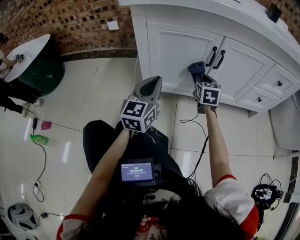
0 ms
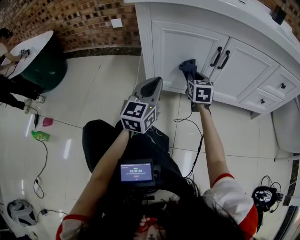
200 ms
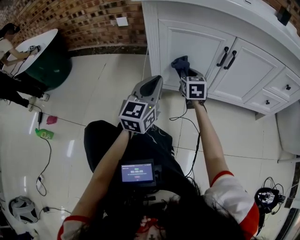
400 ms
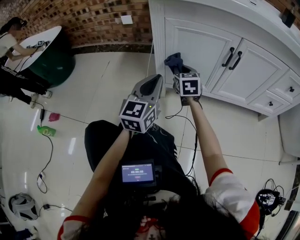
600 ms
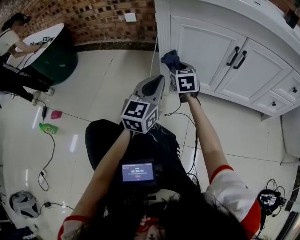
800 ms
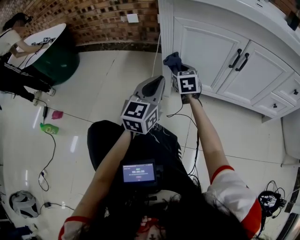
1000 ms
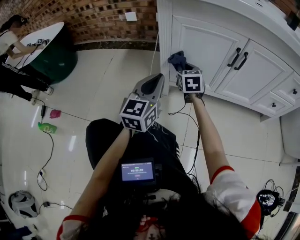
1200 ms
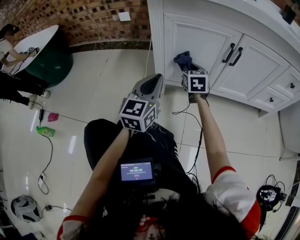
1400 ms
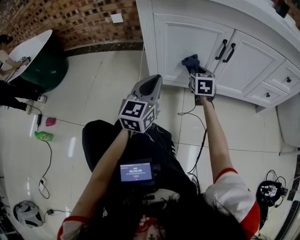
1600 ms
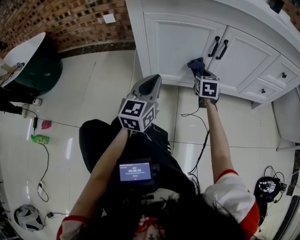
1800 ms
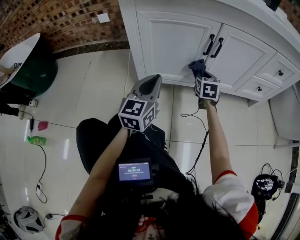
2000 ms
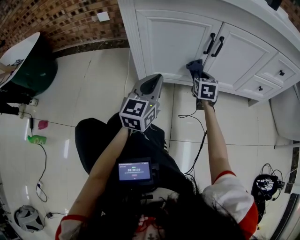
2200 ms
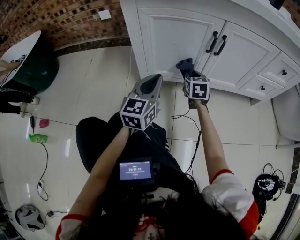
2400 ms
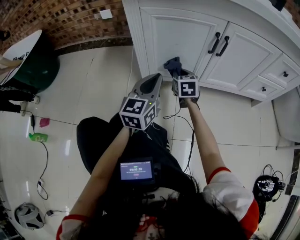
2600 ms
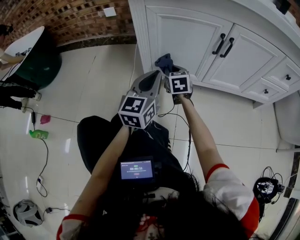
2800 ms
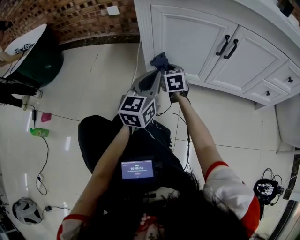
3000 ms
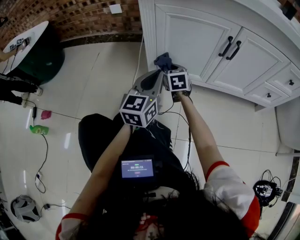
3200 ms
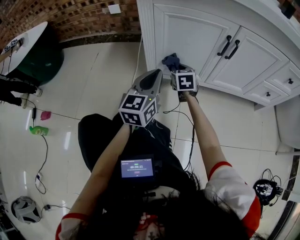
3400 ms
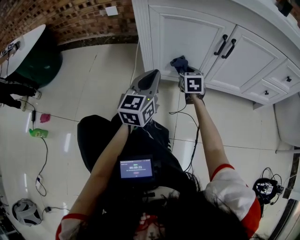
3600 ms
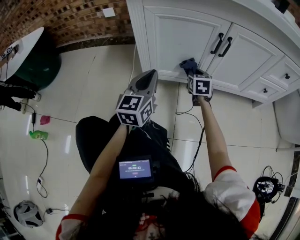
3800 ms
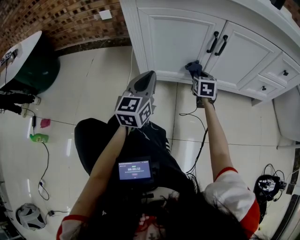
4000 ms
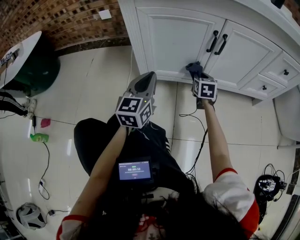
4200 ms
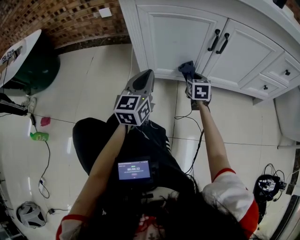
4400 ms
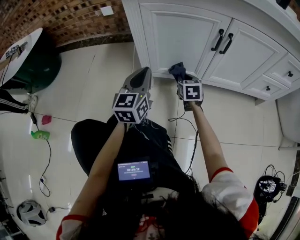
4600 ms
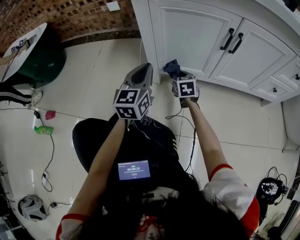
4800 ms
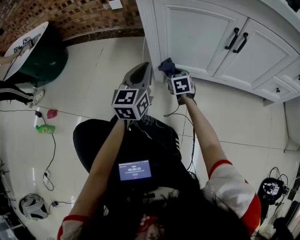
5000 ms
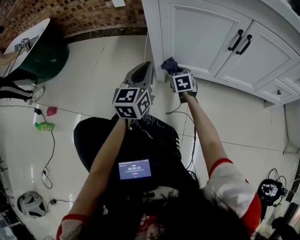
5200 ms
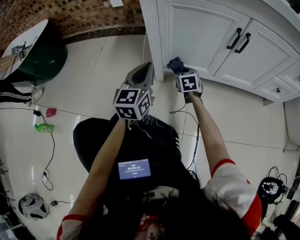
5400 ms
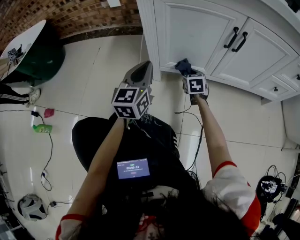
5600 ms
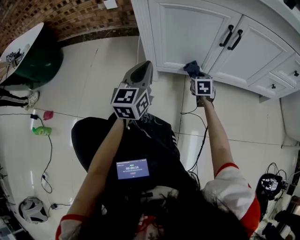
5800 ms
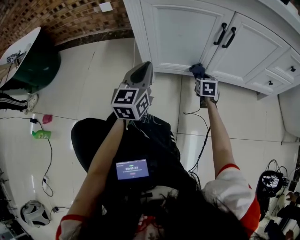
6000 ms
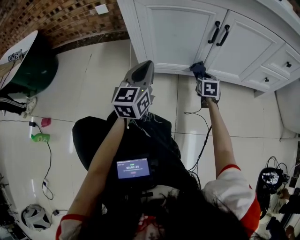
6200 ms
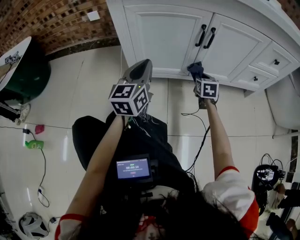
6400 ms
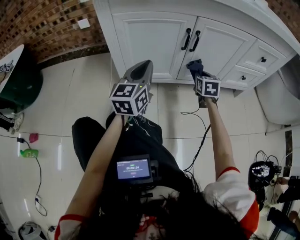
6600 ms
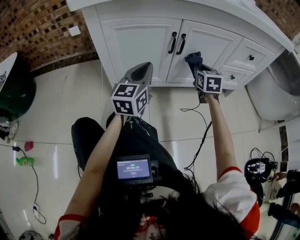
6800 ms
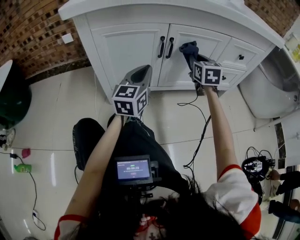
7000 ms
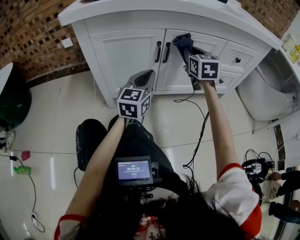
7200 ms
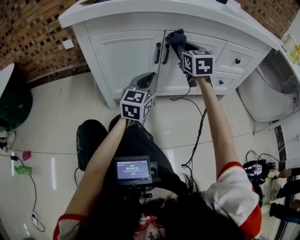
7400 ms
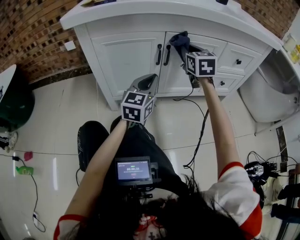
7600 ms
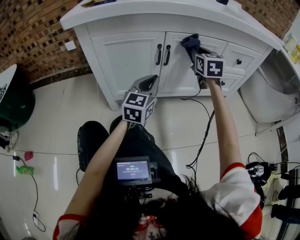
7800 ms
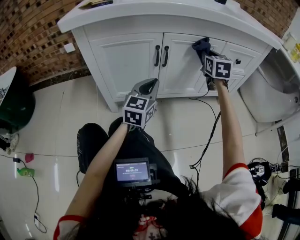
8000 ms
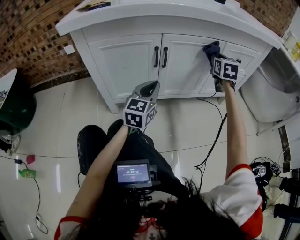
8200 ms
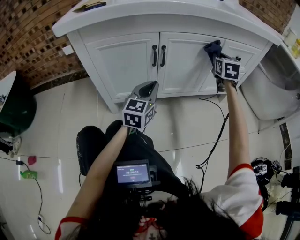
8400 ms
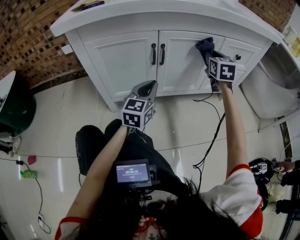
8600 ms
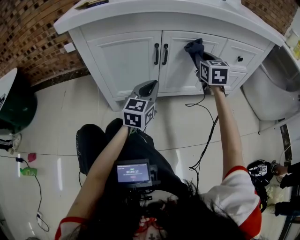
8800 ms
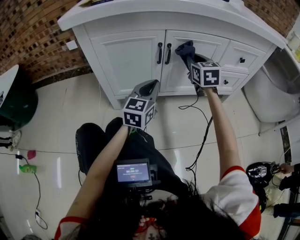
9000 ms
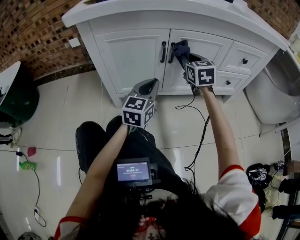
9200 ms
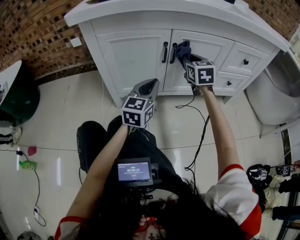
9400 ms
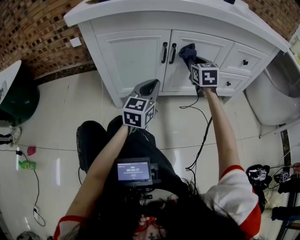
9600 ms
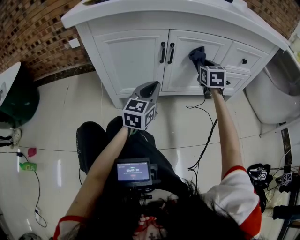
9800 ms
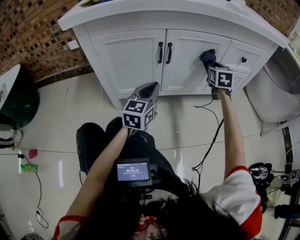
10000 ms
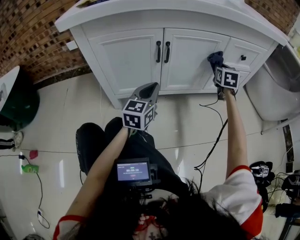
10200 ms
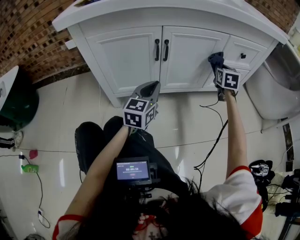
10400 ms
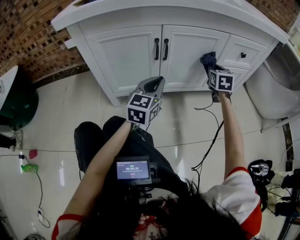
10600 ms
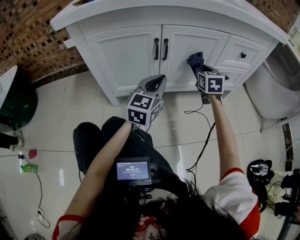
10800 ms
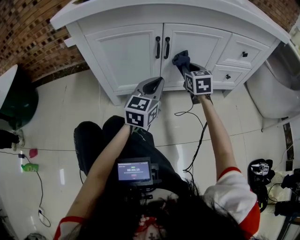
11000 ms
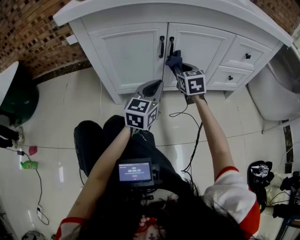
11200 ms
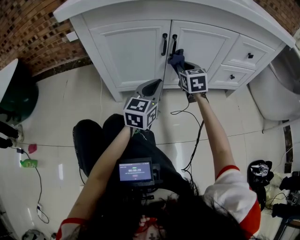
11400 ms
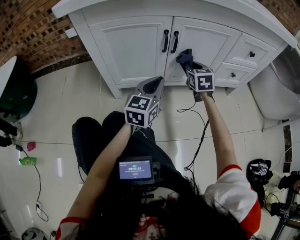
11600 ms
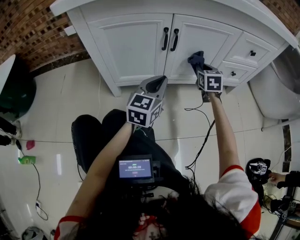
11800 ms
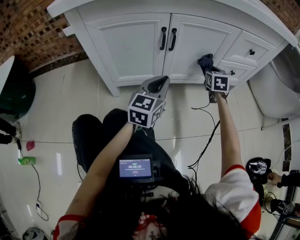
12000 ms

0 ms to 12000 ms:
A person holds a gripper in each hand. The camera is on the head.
0 ms to 1600 ms: The right gripper moves some 25 cm to the left and comes back.
1600 ms to 3000 ms: The right gripper heads to the left, covering approximately 15 cm.
3000 ms to 4400 ms: The right gripper goes roughly 20 cm to the right.
4400 ms to 6000 ms: The right gripper shifts roughly 5 cm downward, and goes to the left and returns, about 15 cm each way; the left gripper reaches roughly 10 cm to the left, then returns.
6000 ms to 7600 ms: The left gripper moves to the right, about 25 cm. Meanwhile the right gripper travels upward by roughly 35 cm, and changes its angle by roughly 30 degrees.
7600 ms to 9000 ms: The right gripper moves roughly 20 cm to the right and comes back.
9000 ms to 10400 ms: The right gripper shifts some 20 cm to the right and downward, and swivels some 20 degrees.
10400 ms to 12000 ms: The right gripper moves downward, about 10 cm, and moves roughly 25 cm to the left and comes back.

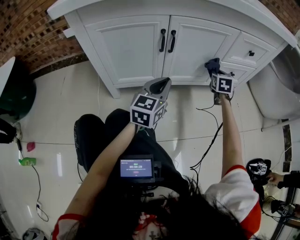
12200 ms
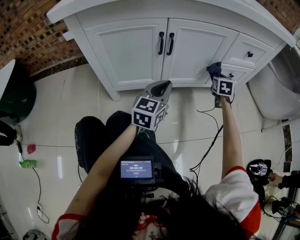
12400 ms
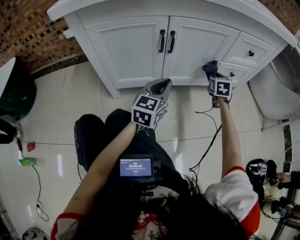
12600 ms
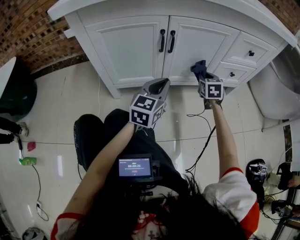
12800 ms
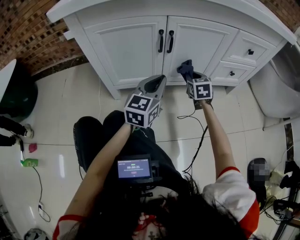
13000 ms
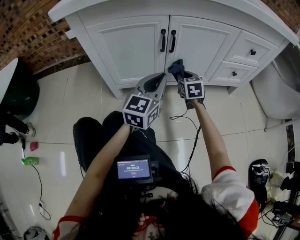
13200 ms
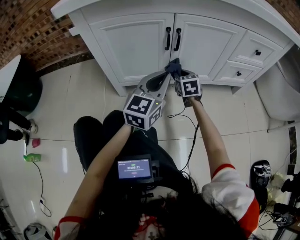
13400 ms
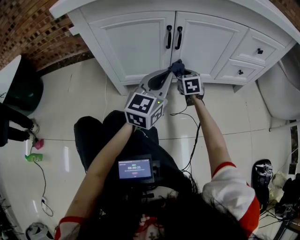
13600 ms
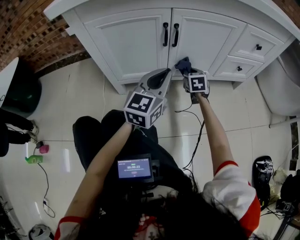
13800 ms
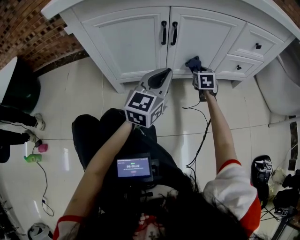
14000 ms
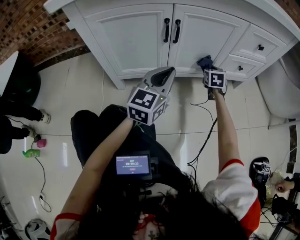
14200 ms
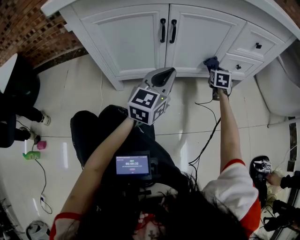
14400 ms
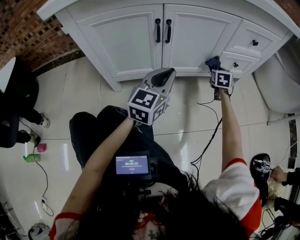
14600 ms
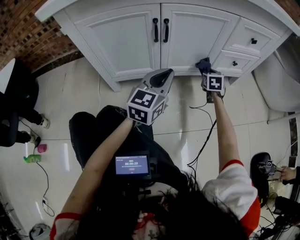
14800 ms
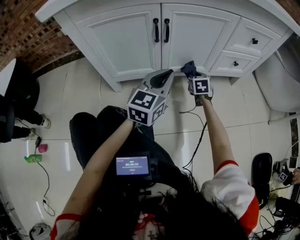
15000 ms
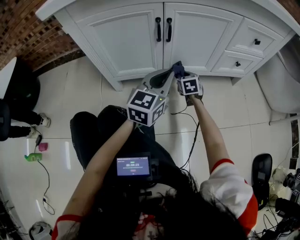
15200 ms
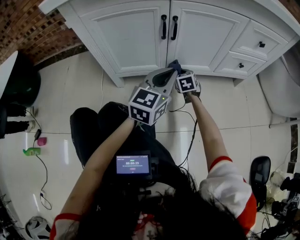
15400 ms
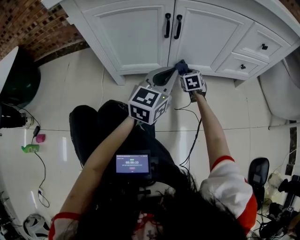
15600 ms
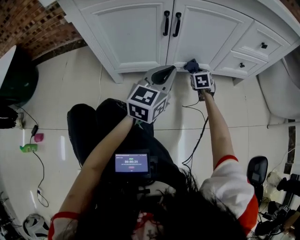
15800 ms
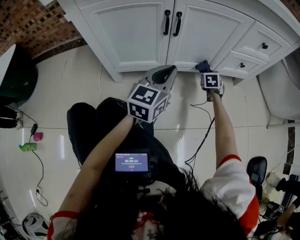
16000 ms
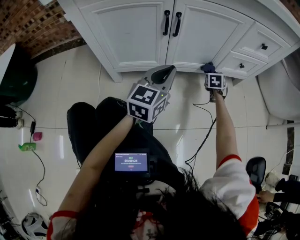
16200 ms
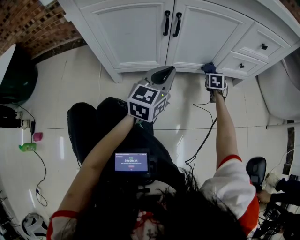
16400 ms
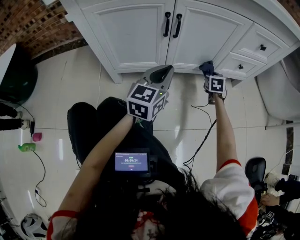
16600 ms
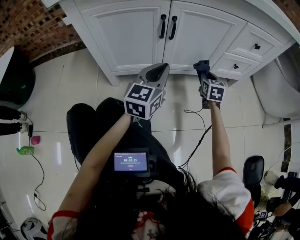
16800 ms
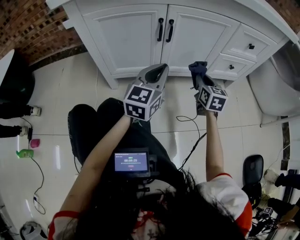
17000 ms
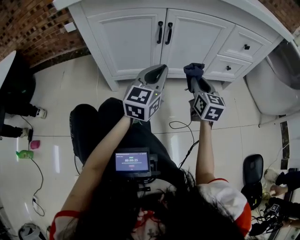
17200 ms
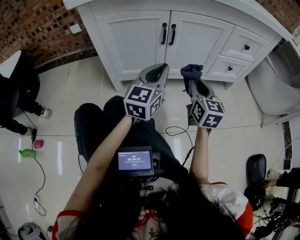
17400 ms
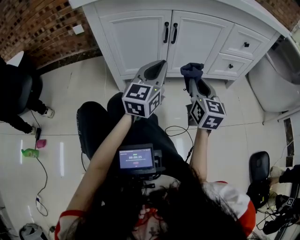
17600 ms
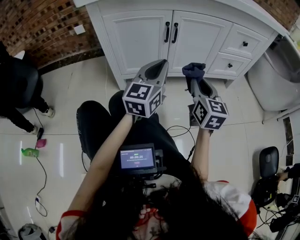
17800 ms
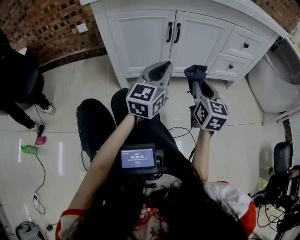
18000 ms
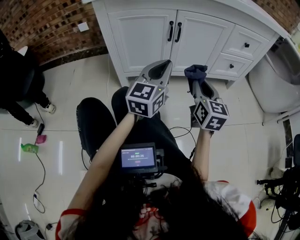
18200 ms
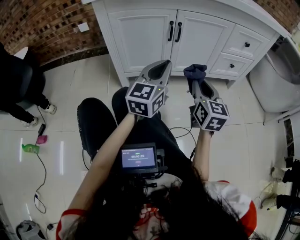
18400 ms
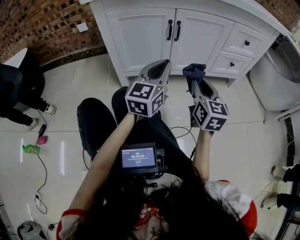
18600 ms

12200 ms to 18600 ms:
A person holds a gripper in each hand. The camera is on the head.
12200 ms to 13800 ms: The right gripper moves to the left, some 15 cm.
13800 ms to 15400 ms: The right gripper shifts roughly 10 cm downward, and travels to the right and back again, roughly 20 cm each way.
15400 ms to 17000 ms: The right gripper travels upward and to the right by some 20 cm, and changes its angle by some 30 degrees.
17000 ms to 18600 ms: The left gripper is displaced backward and upward by roughly 10 cm; the right gripper is displaced backward and upward by about 20 cm.

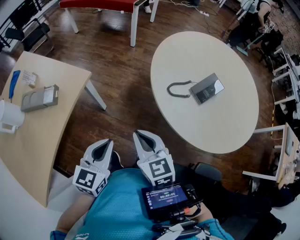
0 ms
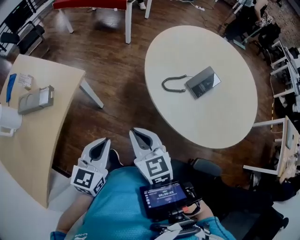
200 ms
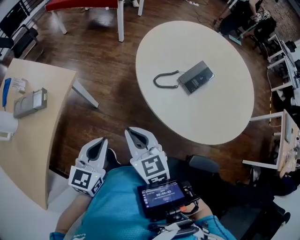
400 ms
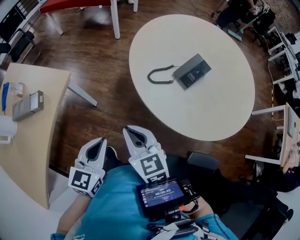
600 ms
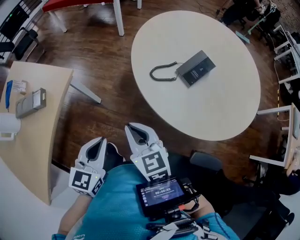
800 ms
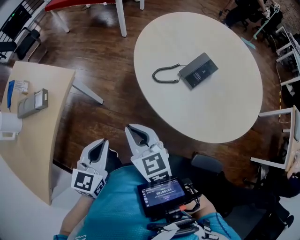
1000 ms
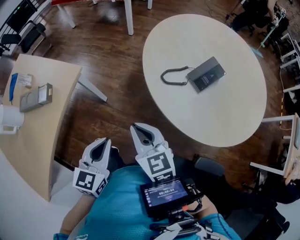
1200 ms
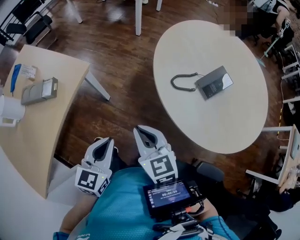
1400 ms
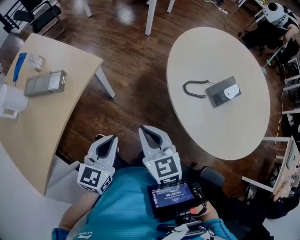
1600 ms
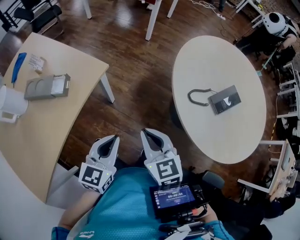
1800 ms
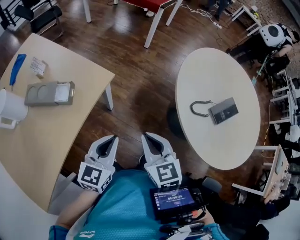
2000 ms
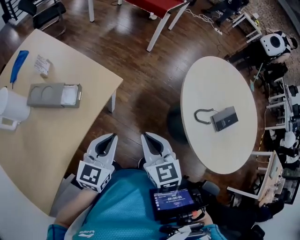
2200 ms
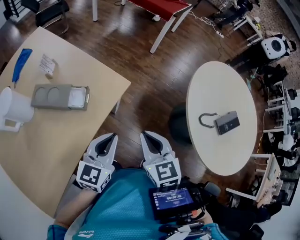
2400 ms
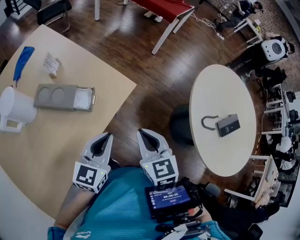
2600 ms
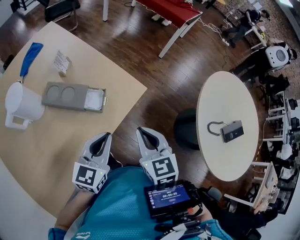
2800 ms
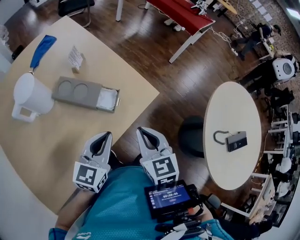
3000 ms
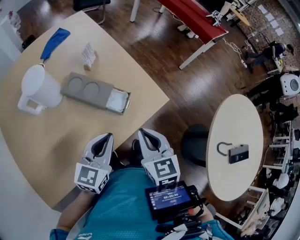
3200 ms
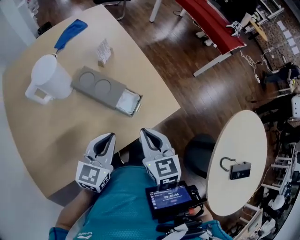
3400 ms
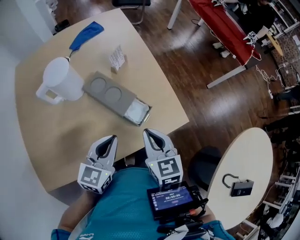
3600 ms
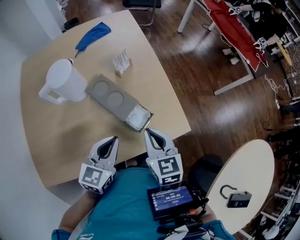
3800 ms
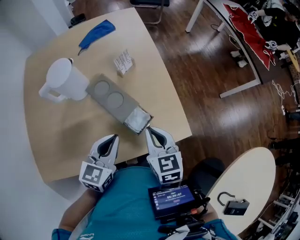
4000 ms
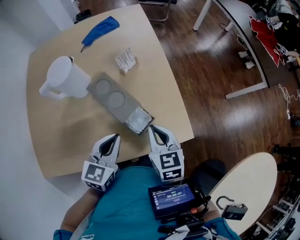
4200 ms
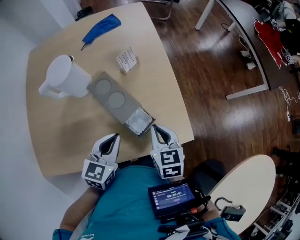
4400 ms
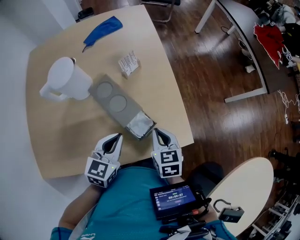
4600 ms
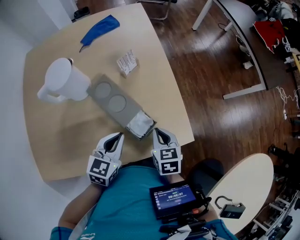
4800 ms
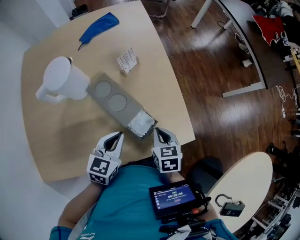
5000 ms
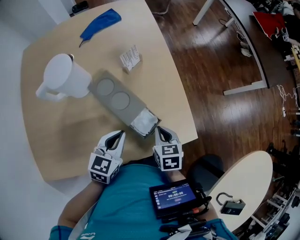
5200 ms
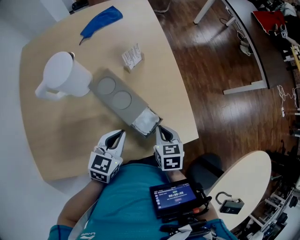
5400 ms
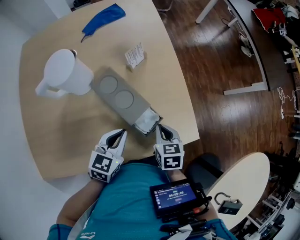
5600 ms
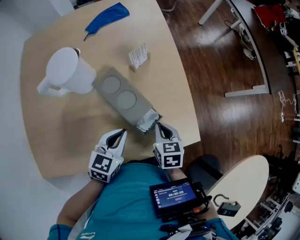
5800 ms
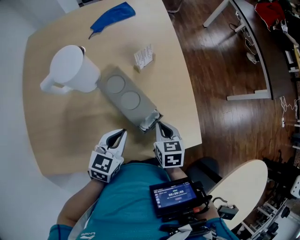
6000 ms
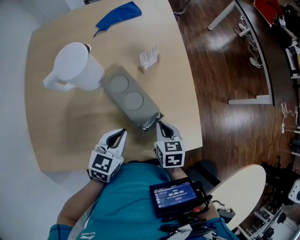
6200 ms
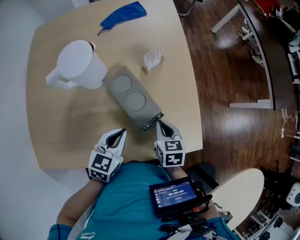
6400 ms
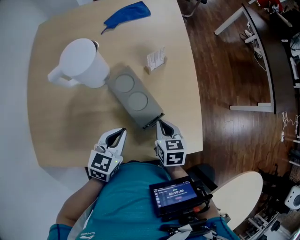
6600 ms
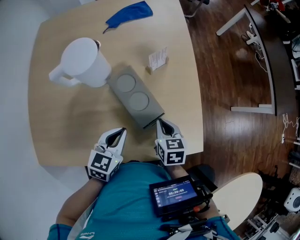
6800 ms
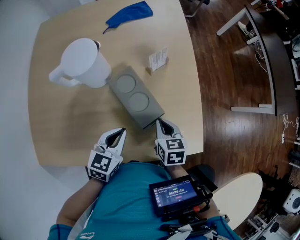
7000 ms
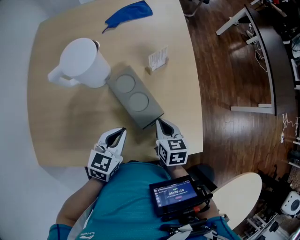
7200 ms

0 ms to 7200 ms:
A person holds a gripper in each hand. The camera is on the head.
1400 ms to 2800 ms: Both grippers travel together to the left and forward, some 35 cm.
2800 ms to 4400 ms: The right gripper moves about 25 cm, and rotates roughly 30 degrees, while the left gripper moves some 15 cm, and changes its angle by roughly 40 degrees.
4400 ms to 5800 ms: Both grippers move downward, roughly 5 cm.
5800 ms to 7200 ms: The right gripper moves approximately 5 cm.
